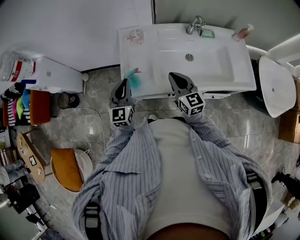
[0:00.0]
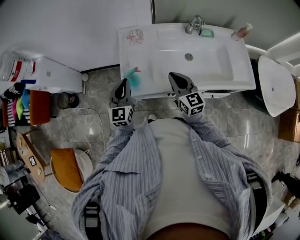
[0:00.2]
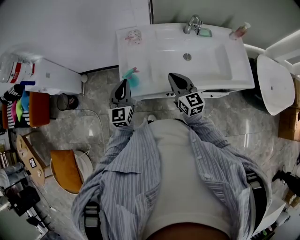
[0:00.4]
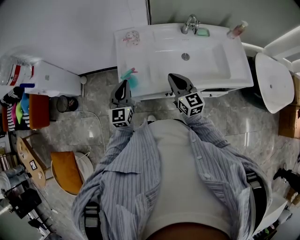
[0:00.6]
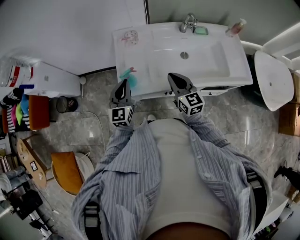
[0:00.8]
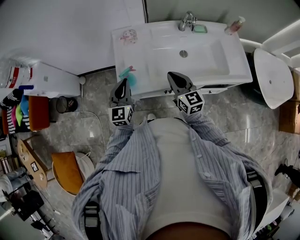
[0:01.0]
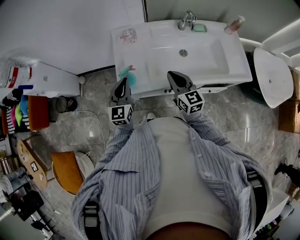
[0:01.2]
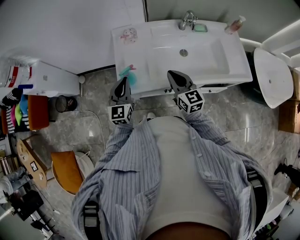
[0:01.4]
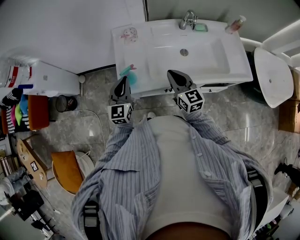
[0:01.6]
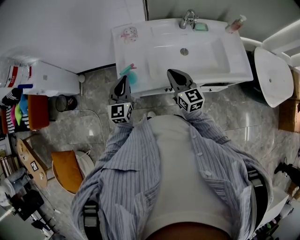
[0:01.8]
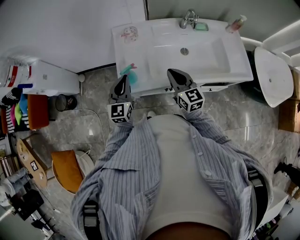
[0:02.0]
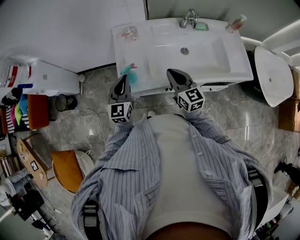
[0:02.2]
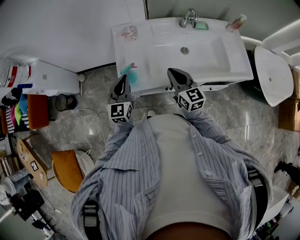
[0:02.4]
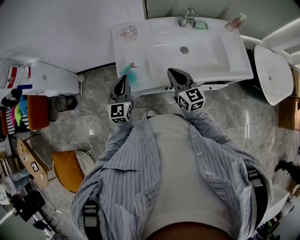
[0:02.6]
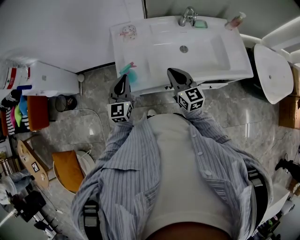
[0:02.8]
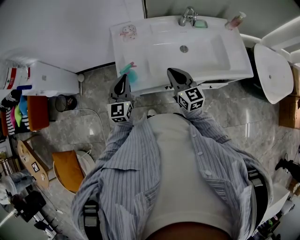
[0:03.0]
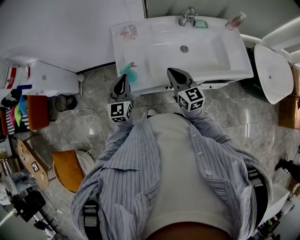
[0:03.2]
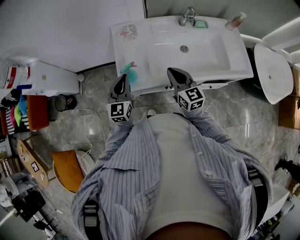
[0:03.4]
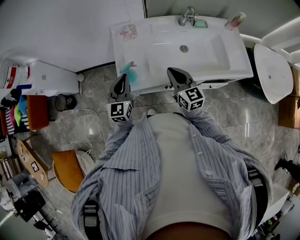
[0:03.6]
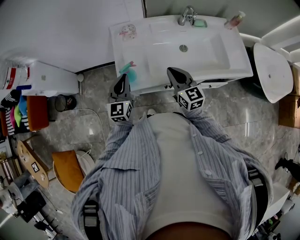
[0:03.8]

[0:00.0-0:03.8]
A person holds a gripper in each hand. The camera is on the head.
0:00.0 to 0:01.2: The grippers make only small movements.
0:01.2 to 0:03.8: Both grippers stay about where they are.

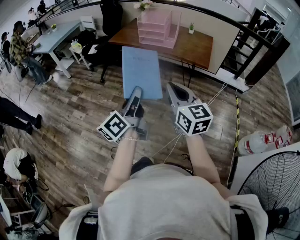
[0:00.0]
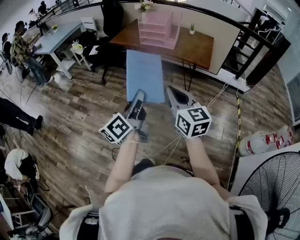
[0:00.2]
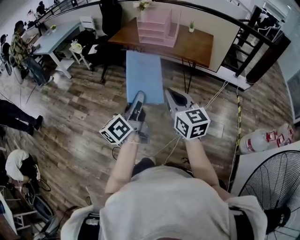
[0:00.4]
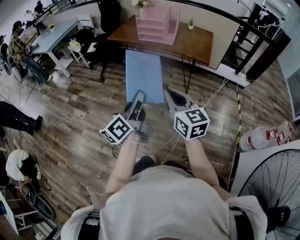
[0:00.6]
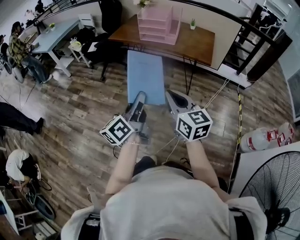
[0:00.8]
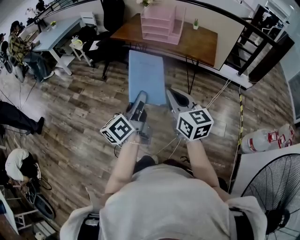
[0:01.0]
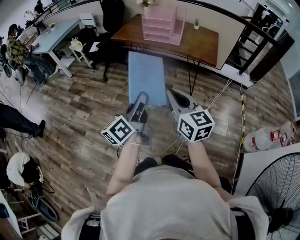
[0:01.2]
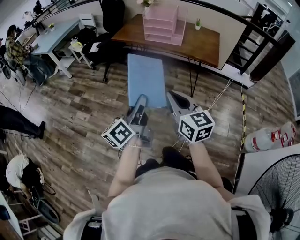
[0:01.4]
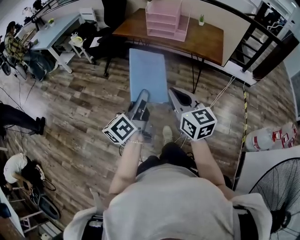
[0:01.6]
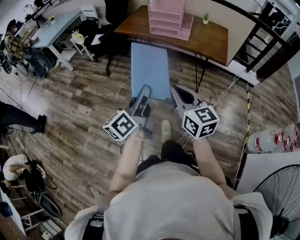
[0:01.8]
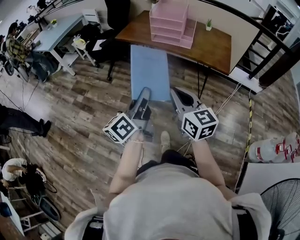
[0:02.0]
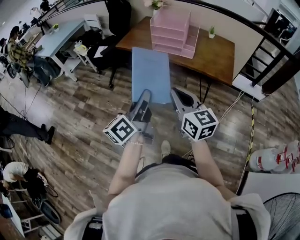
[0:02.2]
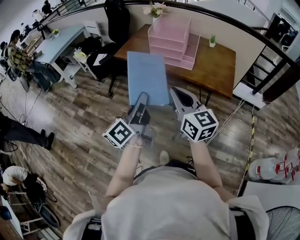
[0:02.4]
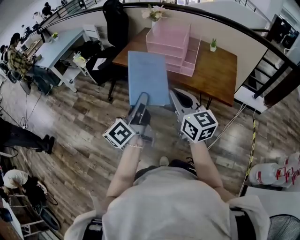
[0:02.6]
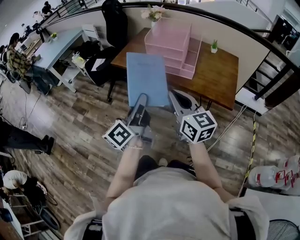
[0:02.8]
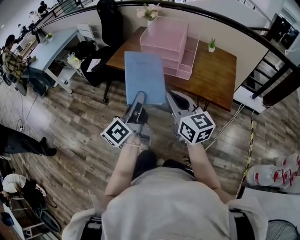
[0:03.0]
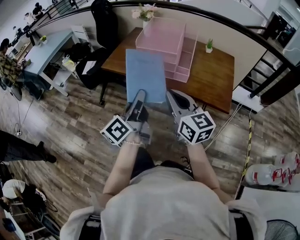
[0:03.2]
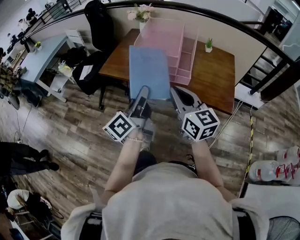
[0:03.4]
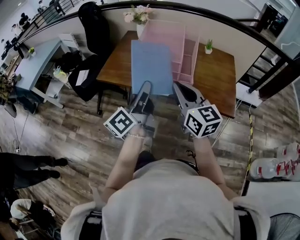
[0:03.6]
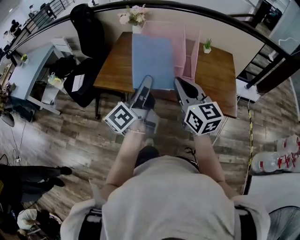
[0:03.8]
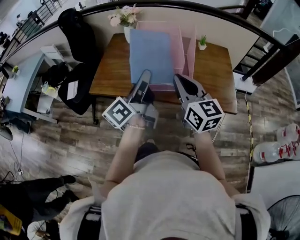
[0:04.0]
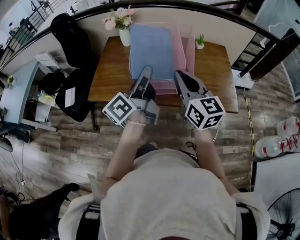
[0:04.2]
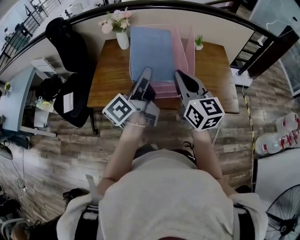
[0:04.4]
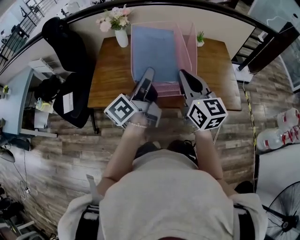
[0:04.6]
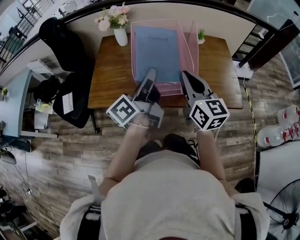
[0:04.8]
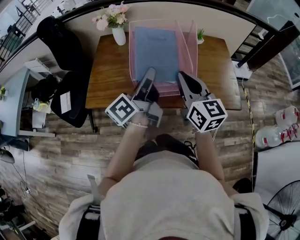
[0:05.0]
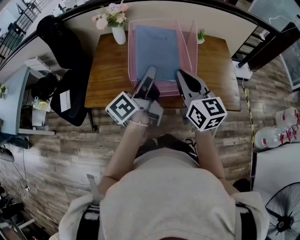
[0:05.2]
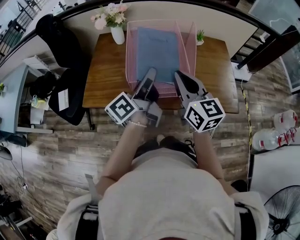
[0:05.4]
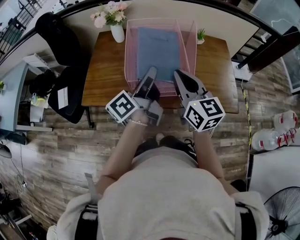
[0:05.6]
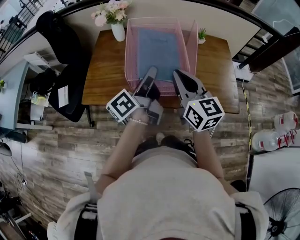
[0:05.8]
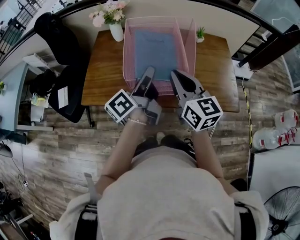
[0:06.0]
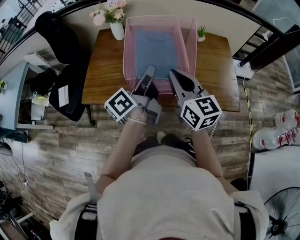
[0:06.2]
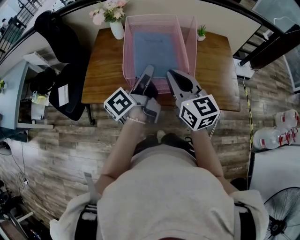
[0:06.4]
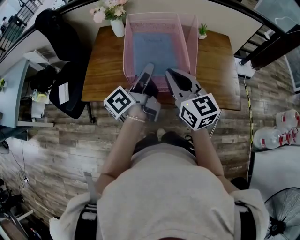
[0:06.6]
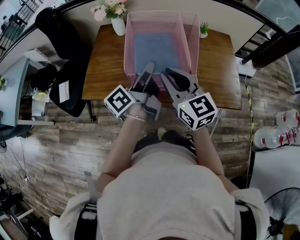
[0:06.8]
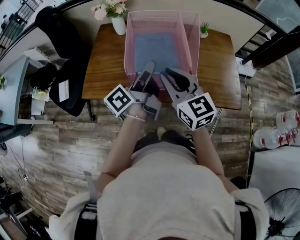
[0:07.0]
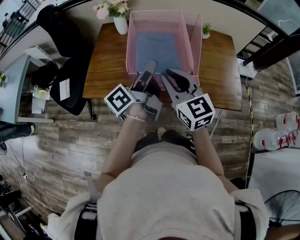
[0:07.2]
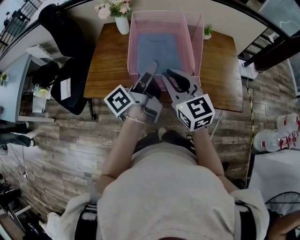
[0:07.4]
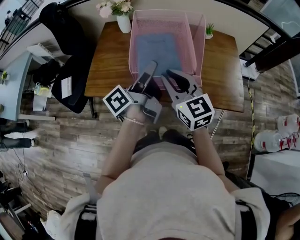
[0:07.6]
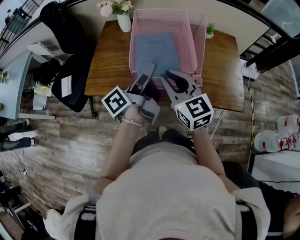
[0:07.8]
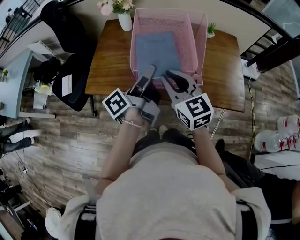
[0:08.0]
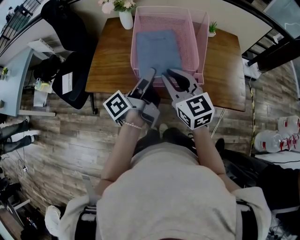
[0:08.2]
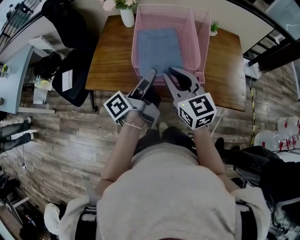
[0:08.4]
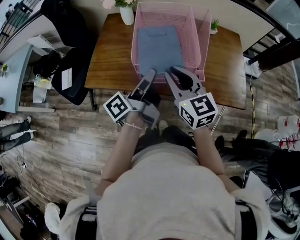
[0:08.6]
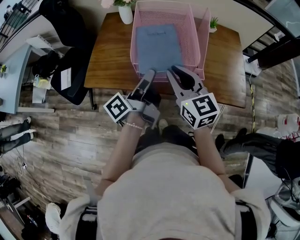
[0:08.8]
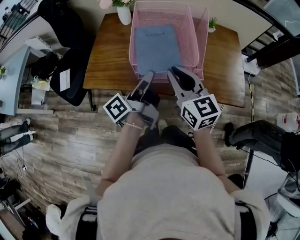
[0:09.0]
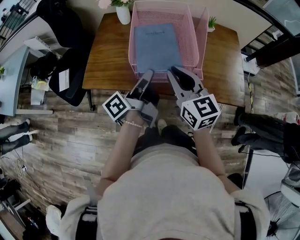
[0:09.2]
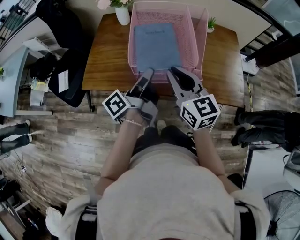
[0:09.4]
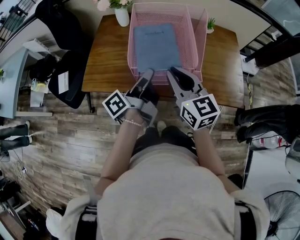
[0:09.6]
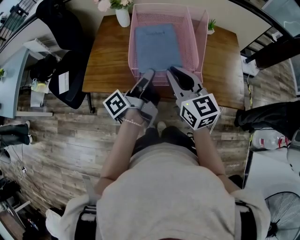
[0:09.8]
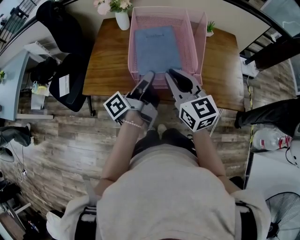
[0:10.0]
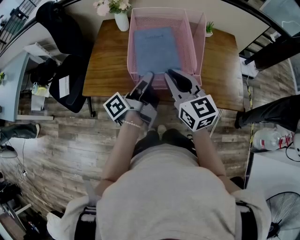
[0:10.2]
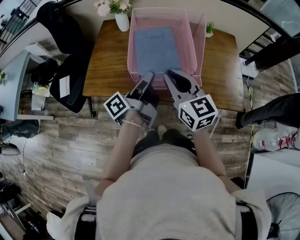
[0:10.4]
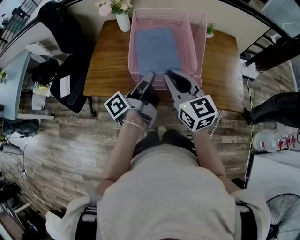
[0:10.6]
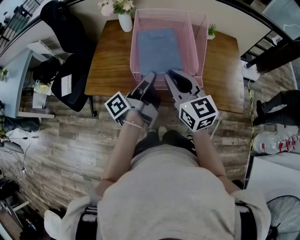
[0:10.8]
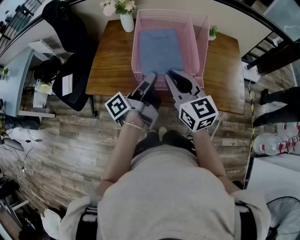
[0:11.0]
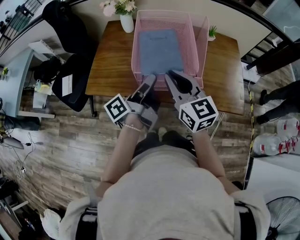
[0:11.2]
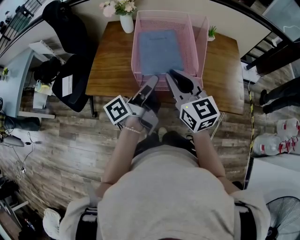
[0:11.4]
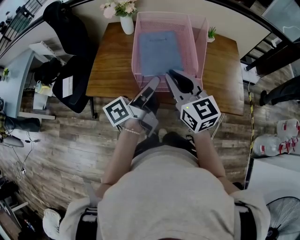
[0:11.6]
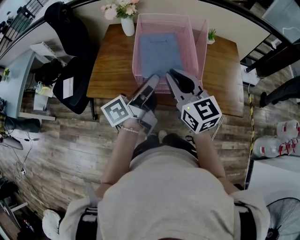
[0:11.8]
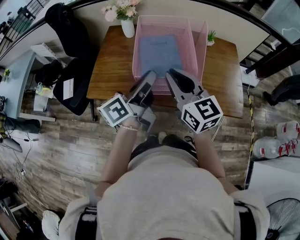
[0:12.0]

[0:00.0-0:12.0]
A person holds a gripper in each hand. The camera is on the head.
0:00.0 to 0:01.6: The right gripper travels to the left and downward by roughly 10 cm; the left gripper travels forward, downward and to the left by some 10 cm.
0:01.6 to 0:03.0: The grippers both shift forward by some 35 cm.
0:03.0 to 0:04.4: The right gripper changes place by approximately 30 cm, and turns by some 30 degrees; the left gripper changes place by approximately 35 cm, and changes its angle by some 30 degrees.
0:04.4 to 0:06.0: The right gripper ends up some 5 cm from where it was. The left gripper goes approximately 5 cm forward.
0:06.0 to 0:07.6: The left gripper opens; the right gripper heads to the left, covering approximately 5 cm.
0:07.6 to 0:09.0: The left gripper moves roughly 5 cm, and closes up.
0:09.0 to 0:10.4: The grippers stay close to where they were, moving slightly.
0:10.4 to 0:12.0: The left gripper goes about 5 cm upward, and rotates approximately 30 degrees.

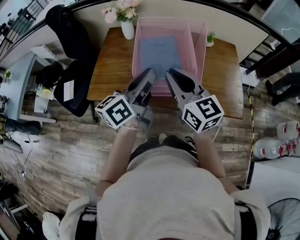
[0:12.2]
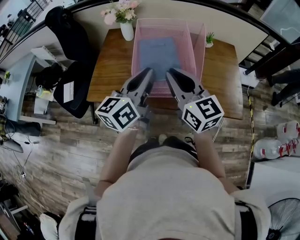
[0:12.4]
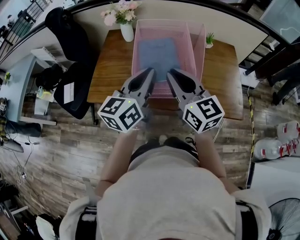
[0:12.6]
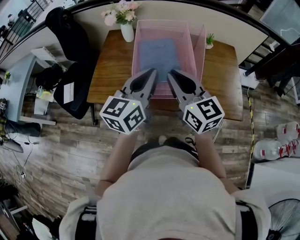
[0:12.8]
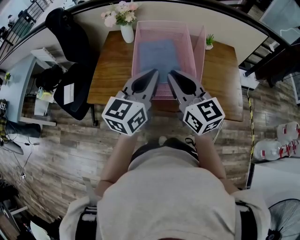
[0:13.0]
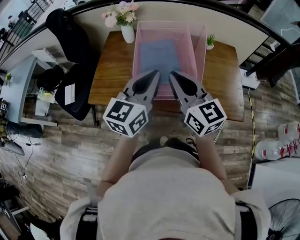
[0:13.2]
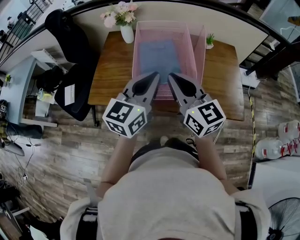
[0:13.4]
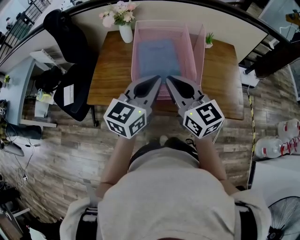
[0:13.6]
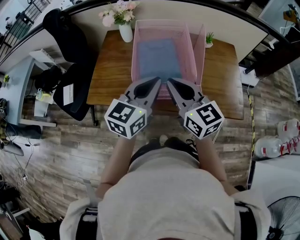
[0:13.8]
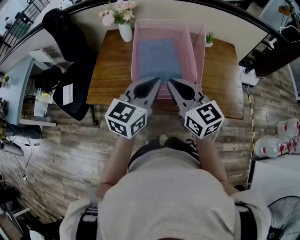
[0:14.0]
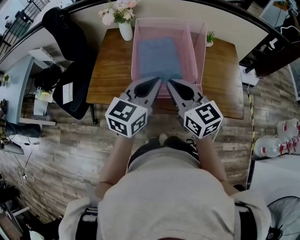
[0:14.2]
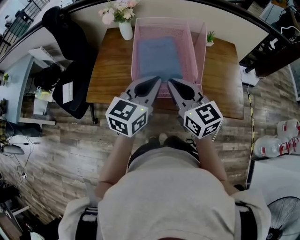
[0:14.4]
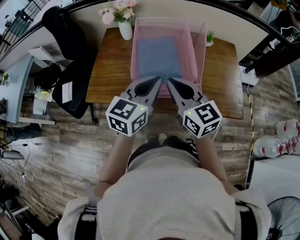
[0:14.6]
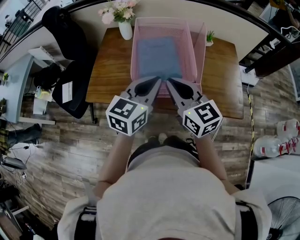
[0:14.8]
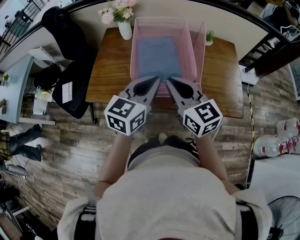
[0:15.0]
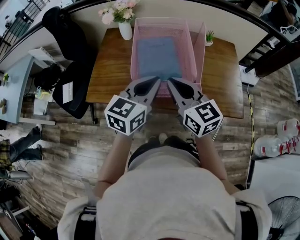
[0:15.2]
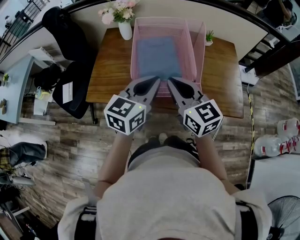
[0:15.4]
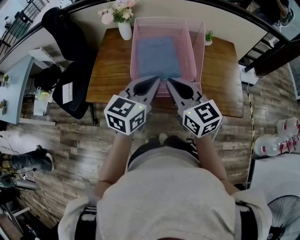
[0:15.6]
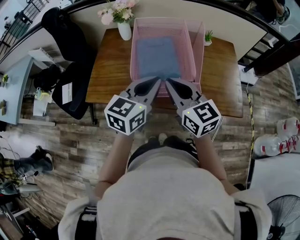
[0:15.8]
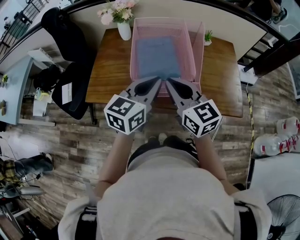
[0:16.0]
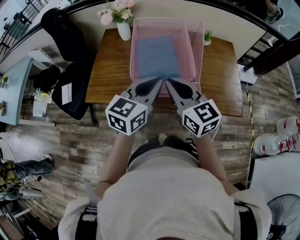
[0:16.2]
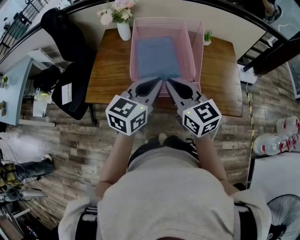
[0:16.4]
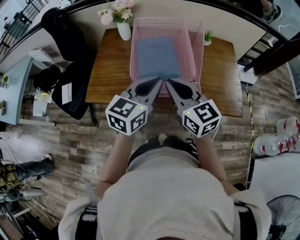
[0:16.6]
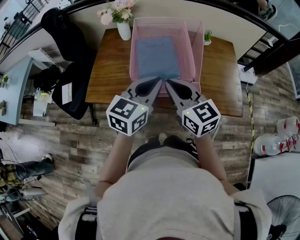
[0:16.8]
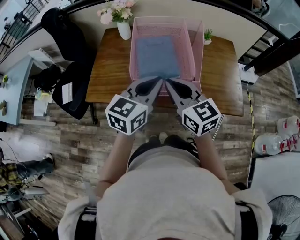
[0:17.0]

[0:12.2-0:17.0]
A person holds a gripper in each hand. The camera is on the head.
0:12.2 to 0:13.8: The left gripper changes its angle by some 40 degrees.
0:13.8 to 0:15.4: The grippers stay close to where they were, moving slightly.
0:15.4 to 0:17.0: Neither gripper changes place.

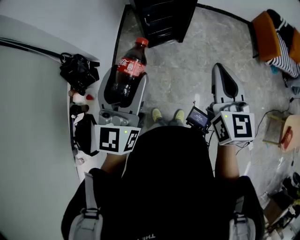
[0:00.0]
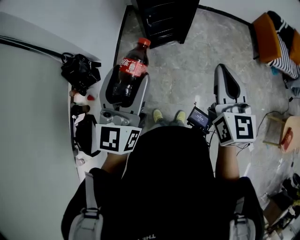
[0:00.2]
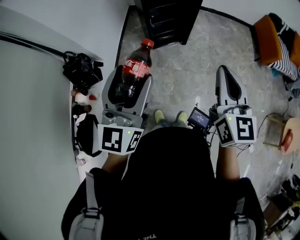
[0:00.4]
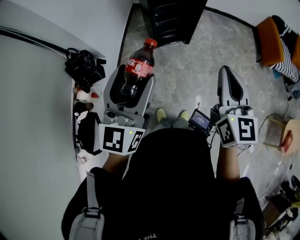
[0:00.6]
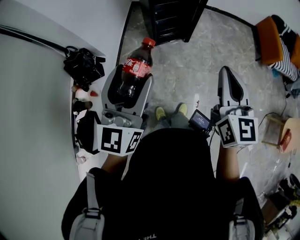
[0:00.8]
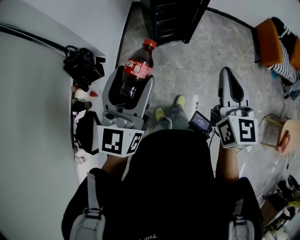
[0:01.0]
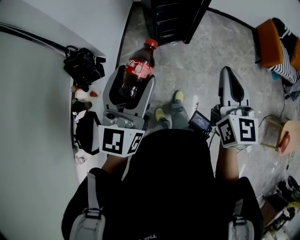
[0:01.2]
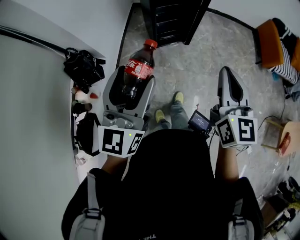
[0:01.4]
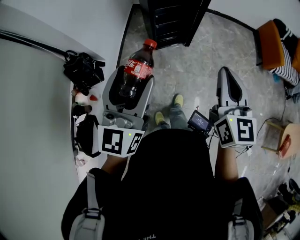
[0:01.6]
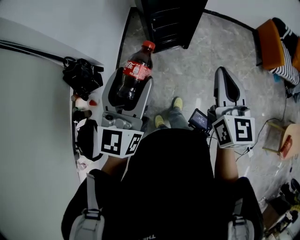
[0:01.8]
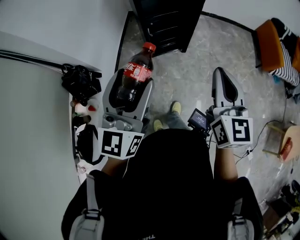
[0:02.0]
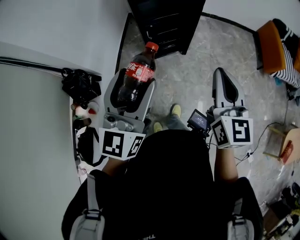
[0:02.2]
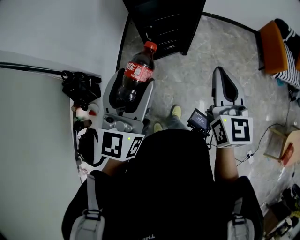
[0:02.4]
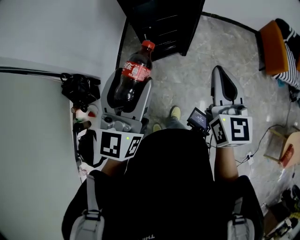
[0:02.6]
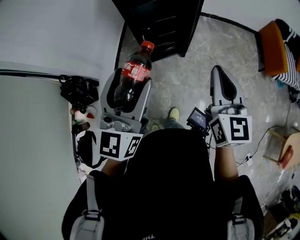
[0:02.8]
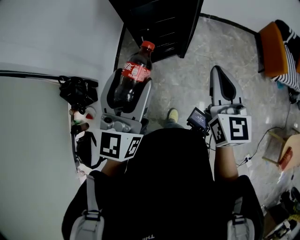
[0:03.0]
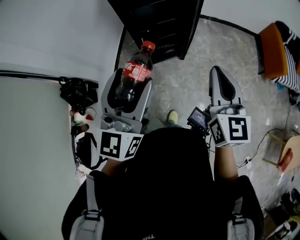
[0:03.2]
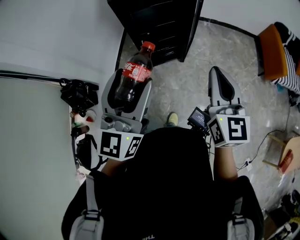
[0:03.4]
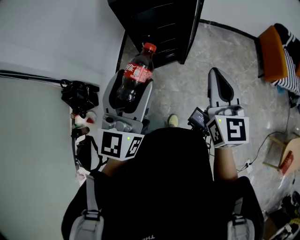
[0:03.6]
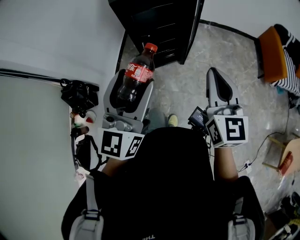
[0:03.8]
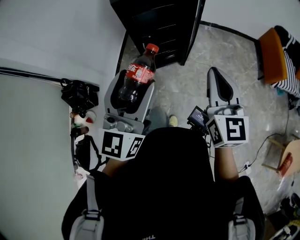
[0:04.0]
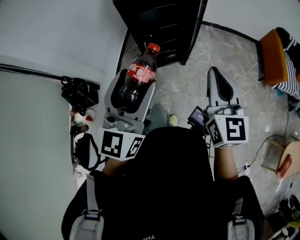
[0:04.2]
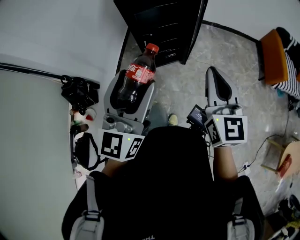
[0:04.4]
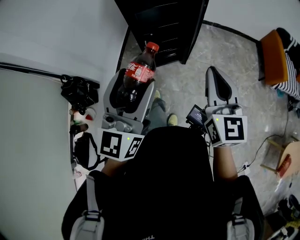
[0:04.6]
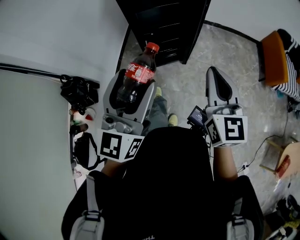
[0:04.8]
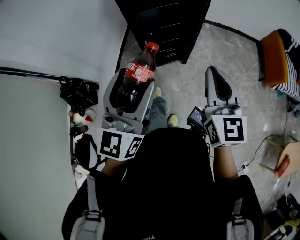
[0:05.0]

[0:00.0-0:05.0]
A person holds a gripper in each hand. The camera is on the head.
0:00.0 to 0:01.6: There are only small adjustments of the grippers.
0:01.6 to 0:03.4: The two grippers go some 20 cm forward and to the right.
0:03.4 to 0:05.0: The grippers make only small movements.
